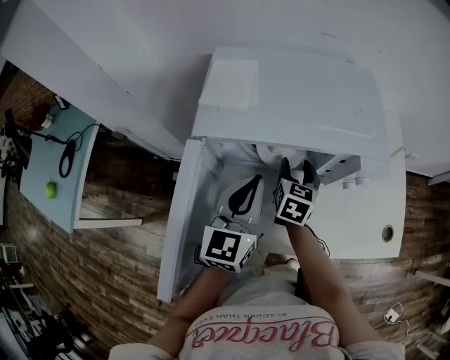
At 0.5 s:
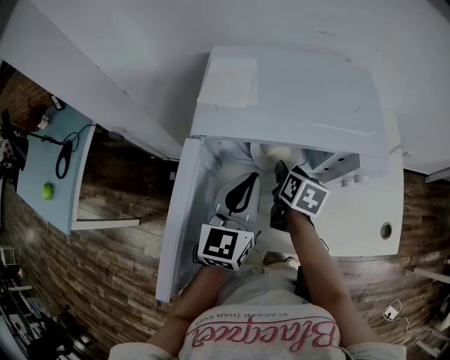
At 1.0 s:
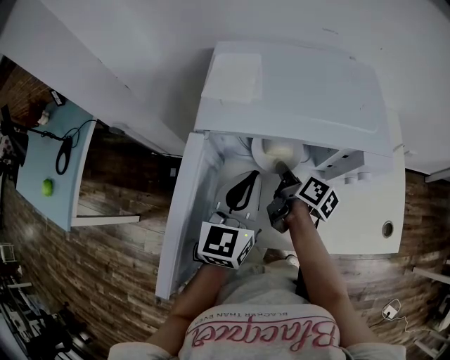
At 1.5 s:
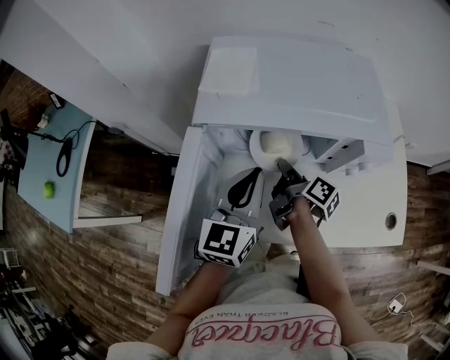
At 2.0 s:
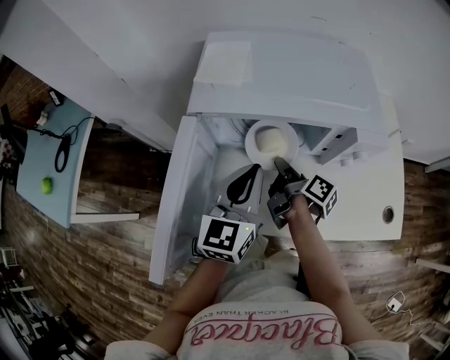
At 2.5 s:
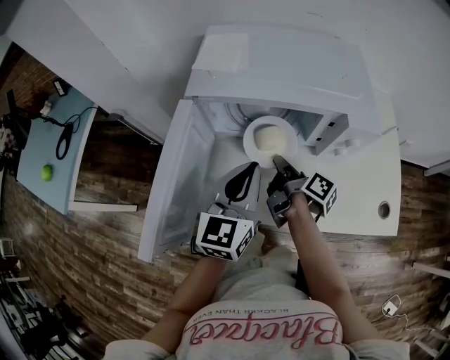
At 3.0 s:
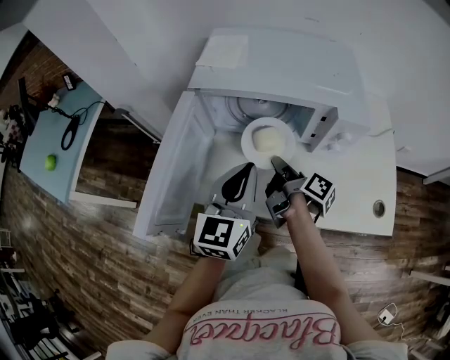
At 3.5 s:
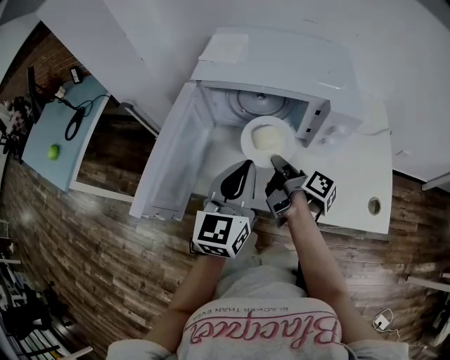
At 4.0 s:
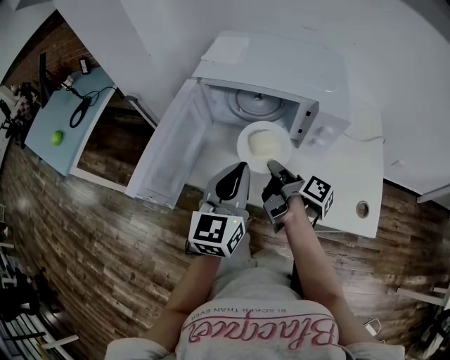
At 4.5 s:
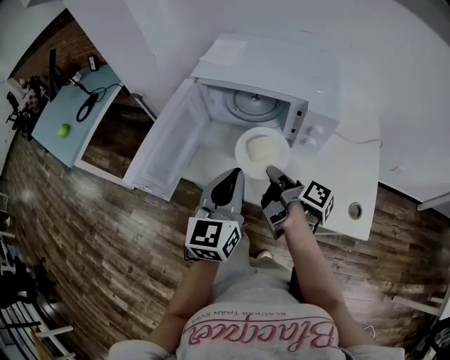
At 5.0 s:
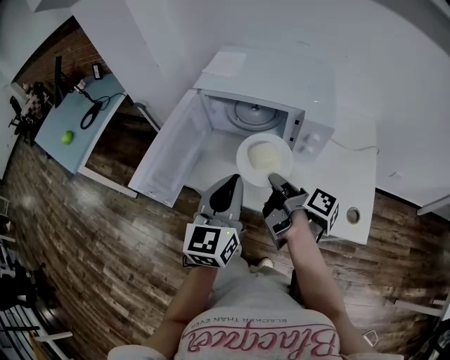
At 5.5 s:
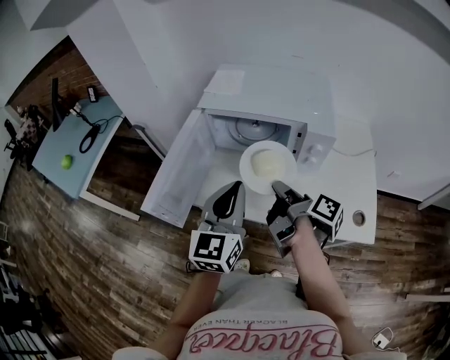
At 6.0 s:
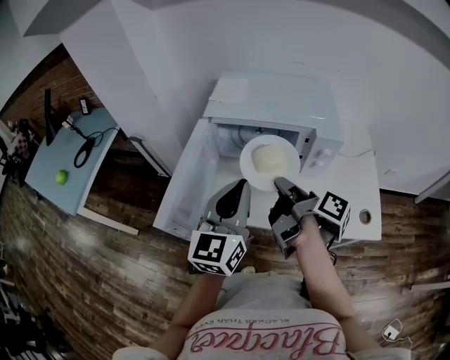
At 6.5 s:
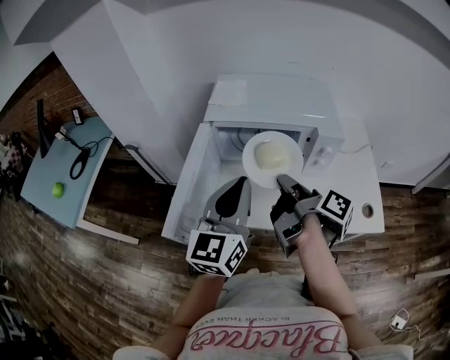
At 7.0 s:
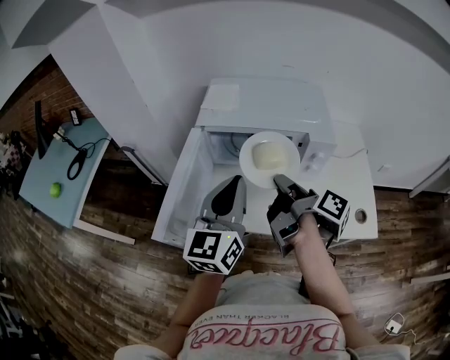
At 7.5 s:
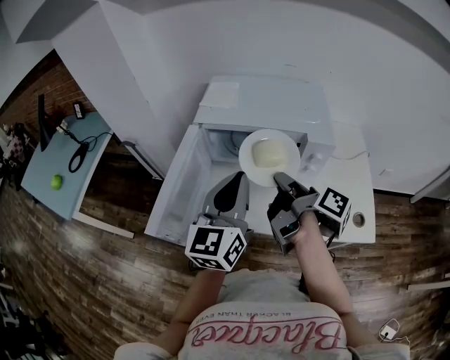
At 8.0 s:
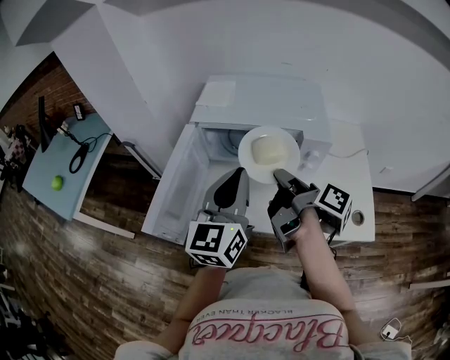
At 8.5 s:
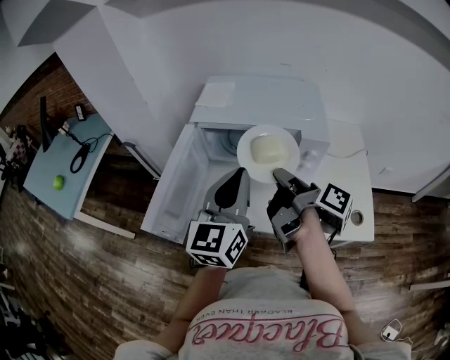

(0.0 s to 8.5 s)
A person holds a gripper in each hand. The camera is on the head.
0.0 s - 2.0 s: The right gripper shifts approximately 5 cm backward, rotates around the line of its fingers by approximately 70 degrees, clockwise from behind, and closes.
2.0 s - 4.0 s: The left gripper travels backward by roughly 15 cm; the right gripper heads backward and upward, covering roughly 15 cm.
4.0 s - 6.5 s: The right gripper shifts some 15 cm upward; the left gripper moves upward and to the left, approximately 10 cm.
6.5 s - 8.5 s: The right gripper shifts by roughly 5 cm. The left gripper moves to the right, roughly 5 cm.

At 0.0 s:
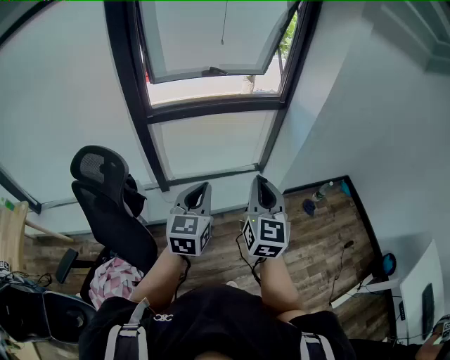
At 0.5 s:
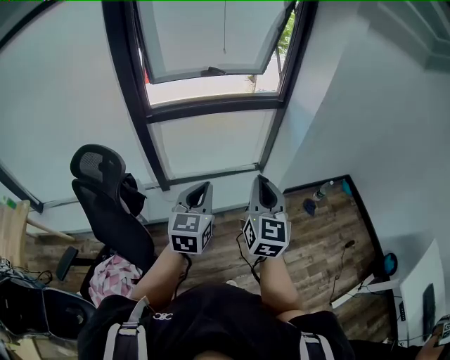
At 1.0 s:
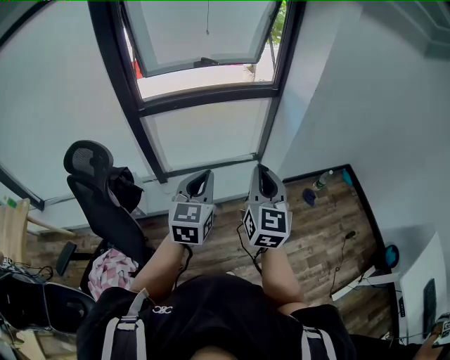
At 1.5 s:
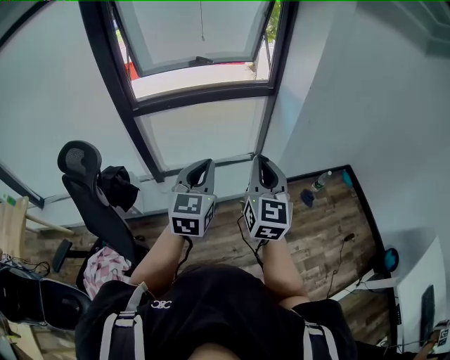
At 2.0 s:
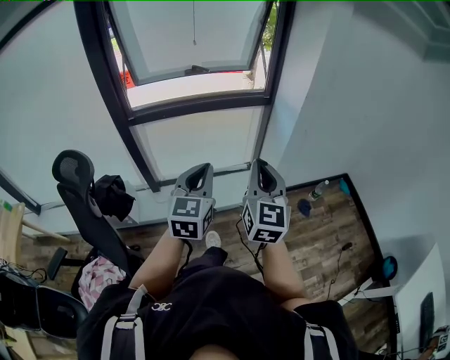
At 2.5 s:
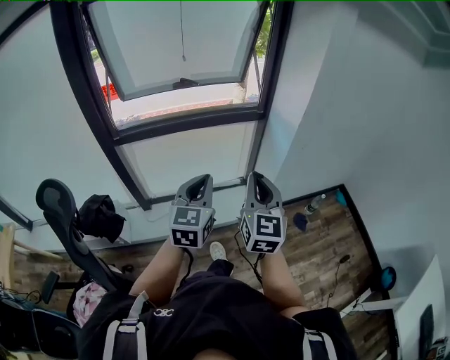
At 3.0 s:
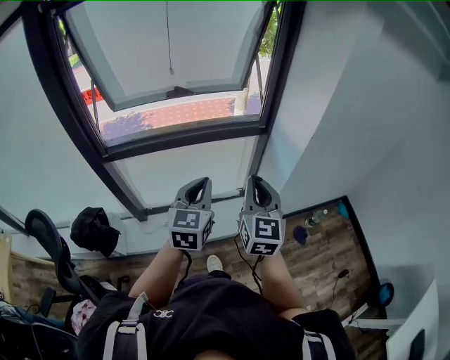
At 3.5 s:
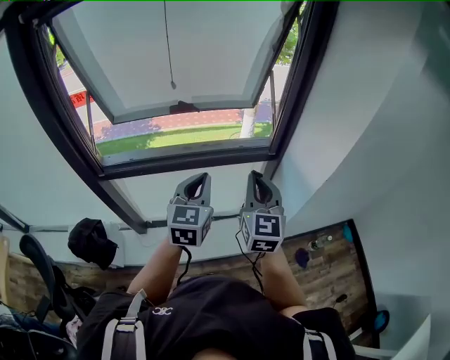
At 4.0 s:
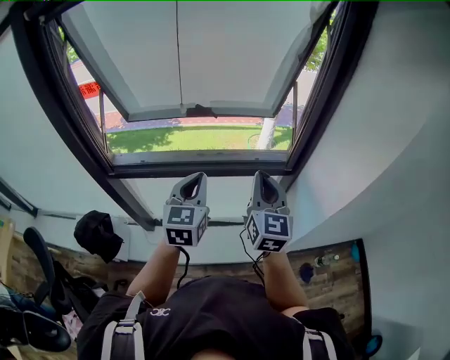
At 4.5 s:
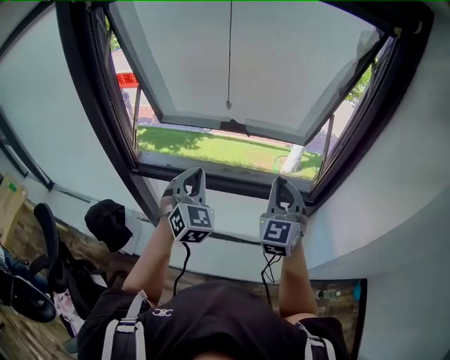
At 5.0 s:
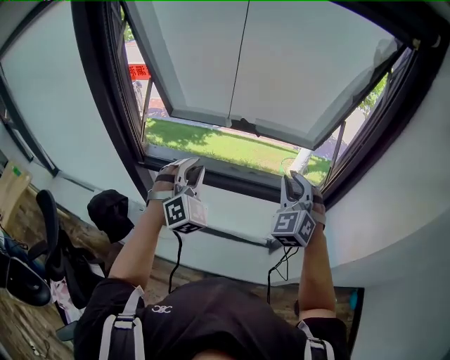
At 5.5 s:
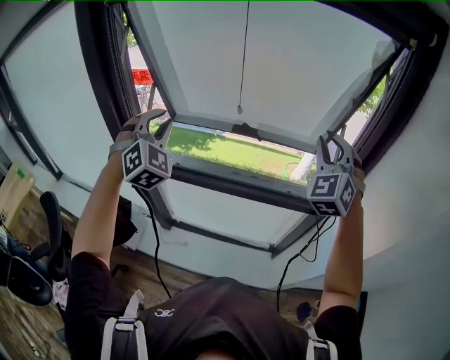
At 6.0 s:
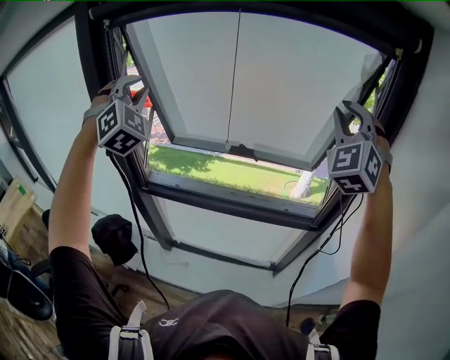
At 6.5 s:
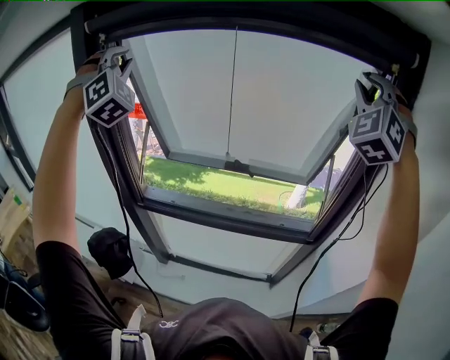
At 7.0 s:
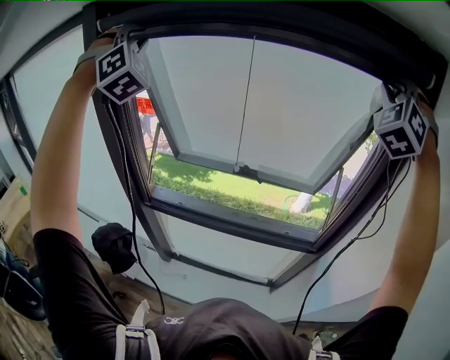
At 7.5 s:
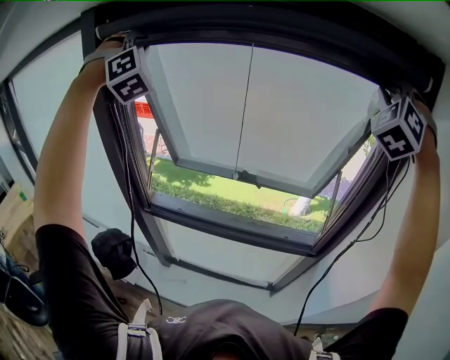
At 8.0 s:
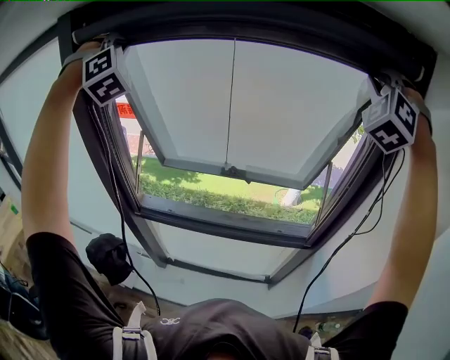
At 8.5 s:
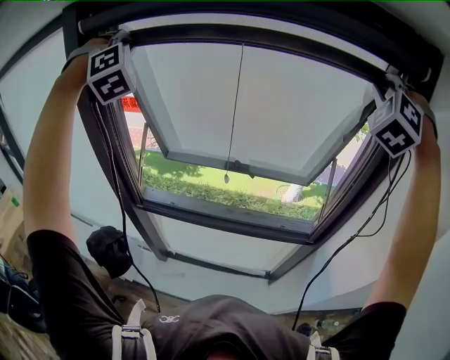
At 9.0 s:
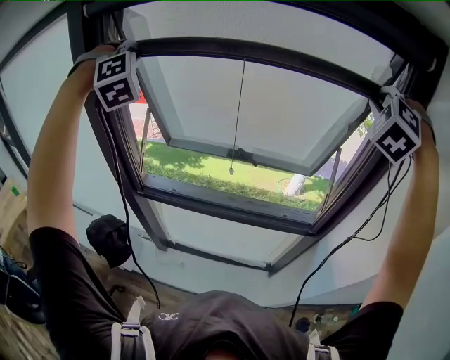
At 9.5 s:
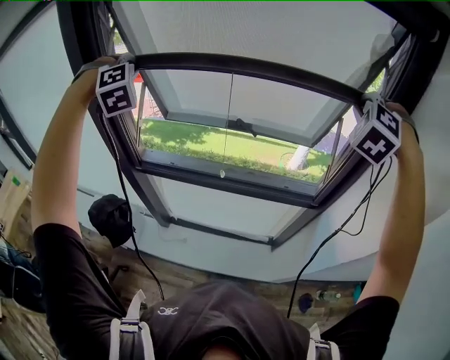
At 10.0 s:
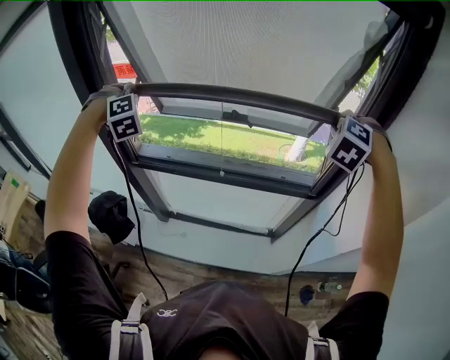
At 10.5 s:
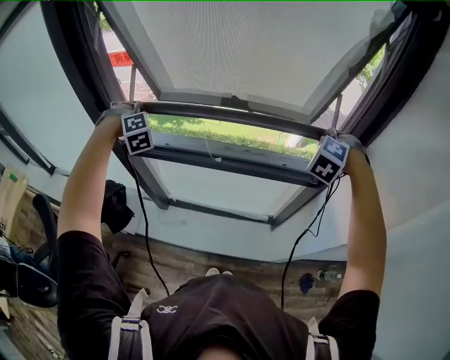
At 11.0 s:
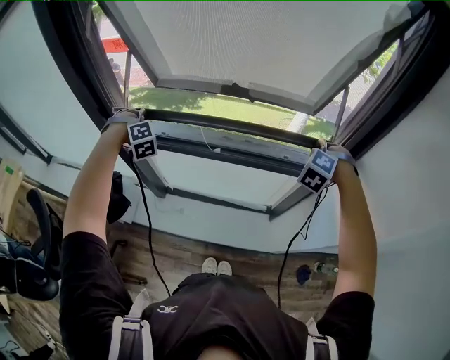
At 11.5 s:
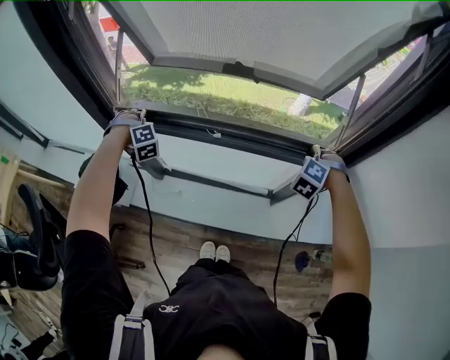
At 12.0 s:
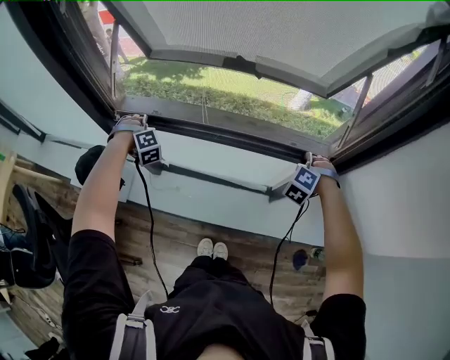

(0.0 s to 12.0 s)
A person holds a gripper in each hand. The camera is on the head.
0.0 s - 2.0 s: Both grippers move to the right and forward, roughly 15 cm.
2.0 s - 4.0 s: Both grippers are carried forward, about 50 cm.
4.0 s - 6.0 s: The right gripper goes some 35 cm upward and forward, and rotates around the line of its fingers by roughly 70 degrees, counterclockwise from behind. Meanwhile the left gripper moves upward, to the left and forward, roughly 40 cm, and rotates around the line of its fingers by roughly 60 degrees, clockwise from behind.
6.0 s - 8.0 s: The right gripper heads upward, covering roughly 15 cm, and turns by about 20 degrees; the left gripper shifts roughly 20 cm upward and forward, and swivels approximately 20 degrees.
8.0 s - 10.0 s: The grippers both shift downward by roughly 35 cm. The right gripper angles its fingers downward, by some 40 degrees, while the left gripper angles its fingers downward, by roughly 30 degrees.
10.0 s - 12.0 s: The grippers both shift downward by roughly 40 cm.

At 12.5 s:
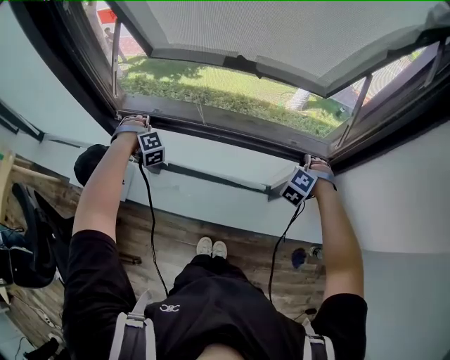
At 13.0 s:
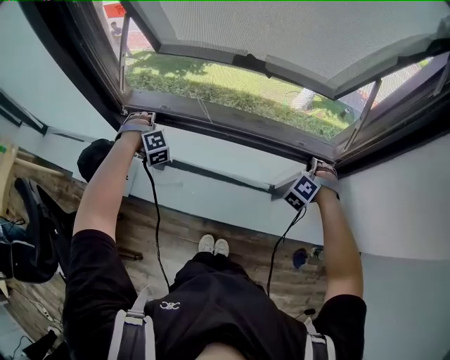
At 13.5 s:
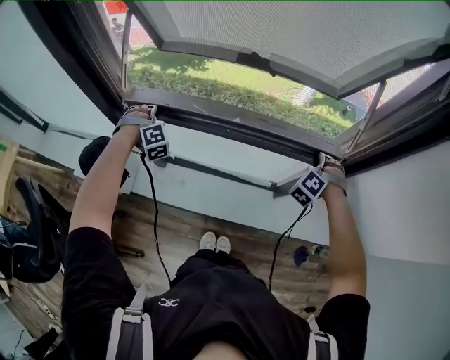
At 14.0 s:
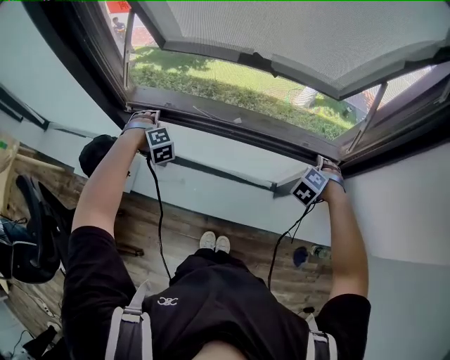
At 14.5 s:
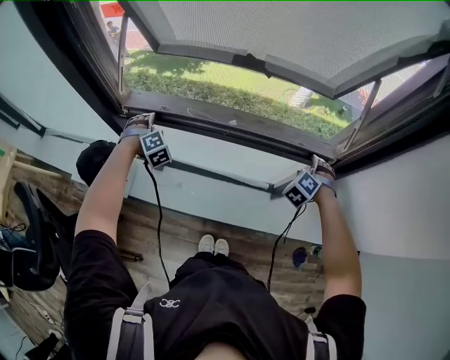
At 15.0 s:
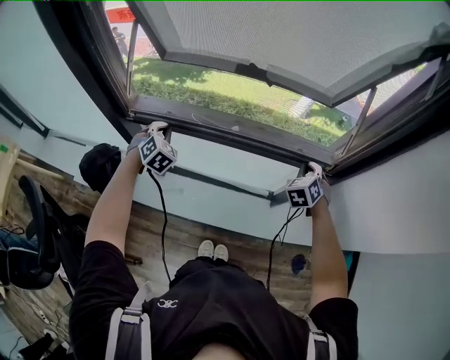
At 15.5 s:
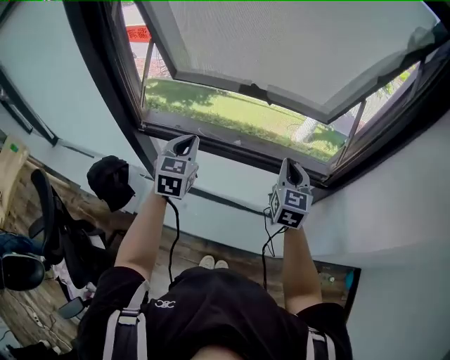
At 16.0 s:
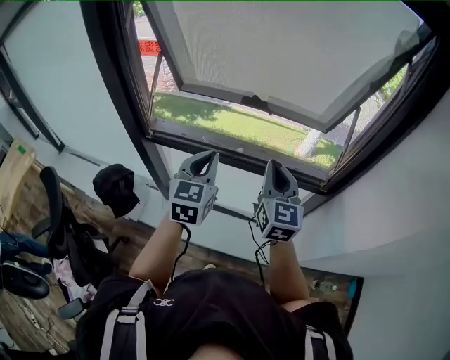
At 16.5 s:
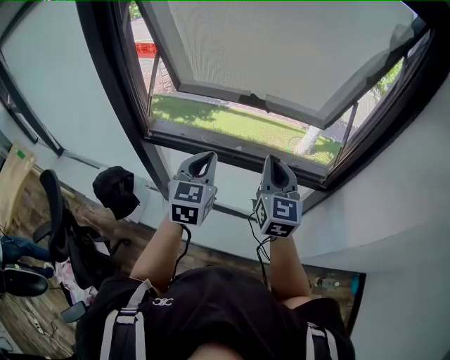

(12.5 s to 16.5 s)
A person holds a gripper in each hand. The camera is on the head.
12.5 s - 14.5 s: The right gripper opens up. The left gripper opens its fingers.
14.5 s - 16.5 s: The right gripper moves upward and to the left, some 35 cm, tilts its fingers approximately 50 degrees upward, and closes. The left gripper heads upward, to the right and backward, covering about 40 cm, points its fingers about 40 degrees further upward, and closes.

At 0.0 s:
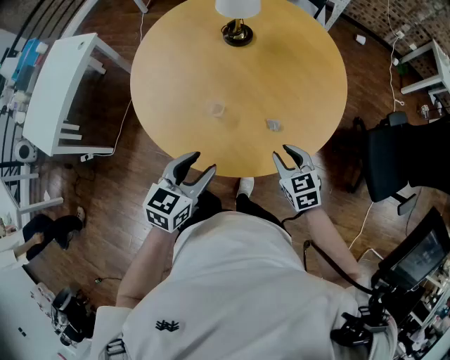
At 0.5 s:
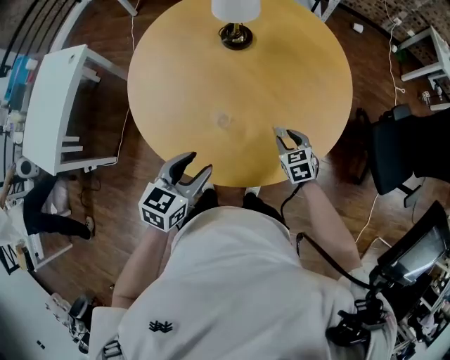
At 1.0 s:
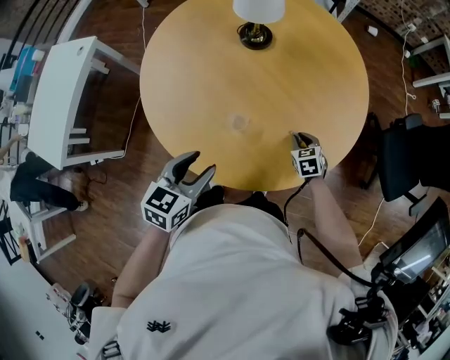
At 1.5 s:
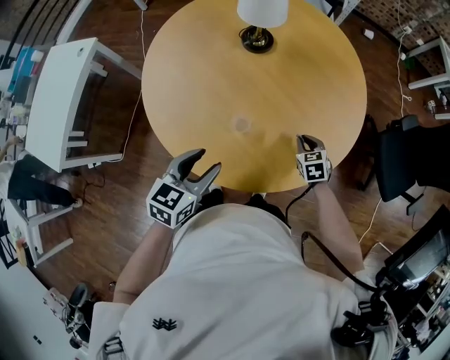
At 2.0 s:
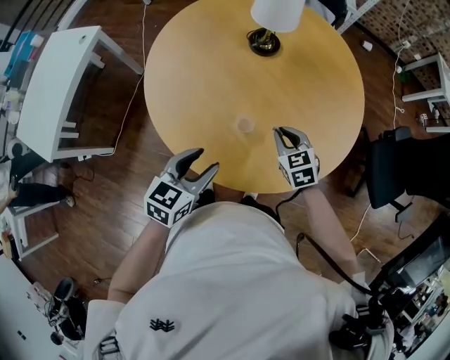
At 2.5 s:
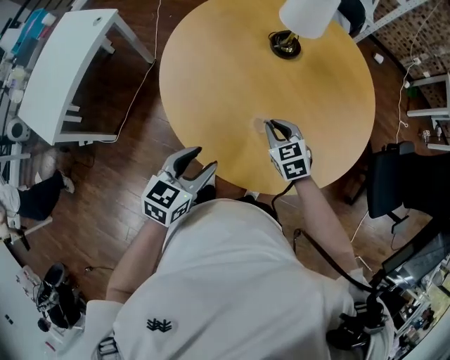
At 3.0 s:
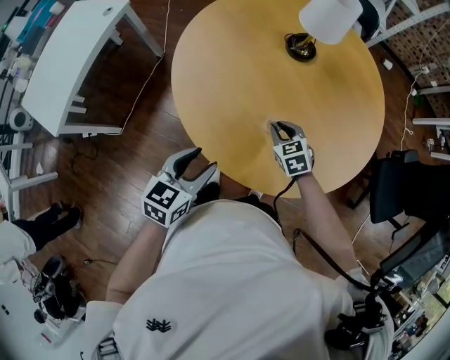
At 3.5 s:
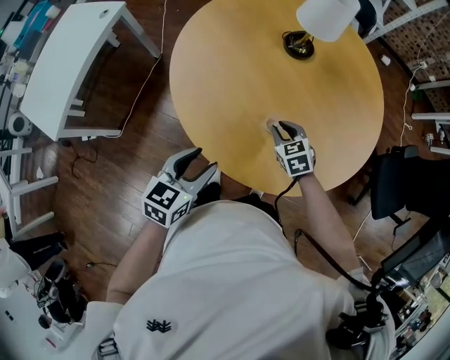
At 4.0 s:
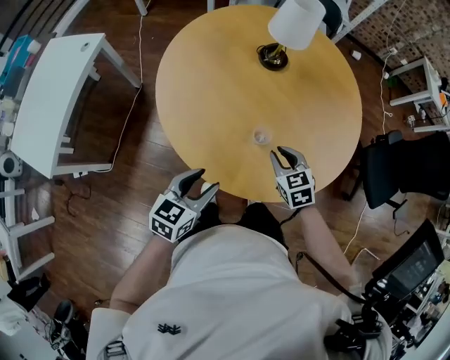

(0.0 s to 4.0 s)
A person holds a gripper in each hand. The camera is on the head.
0.0 s - 2.0 s: Both grippers move to the left and forward, some 15 cm. The right gripper travels downward and back again, some 15 cm each way, and closes.
2.0 s - 4.0 s: Both grippers move to the left, about 10 cm.
